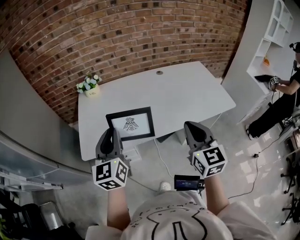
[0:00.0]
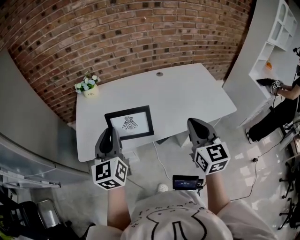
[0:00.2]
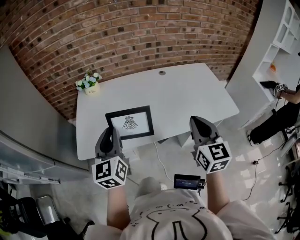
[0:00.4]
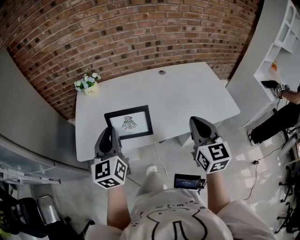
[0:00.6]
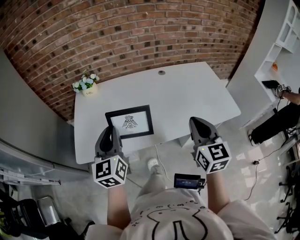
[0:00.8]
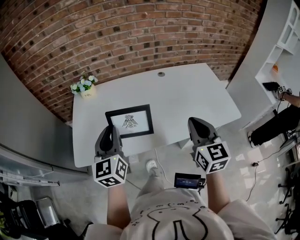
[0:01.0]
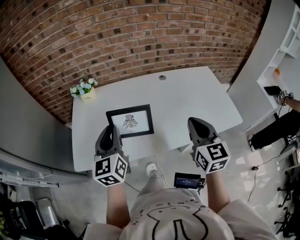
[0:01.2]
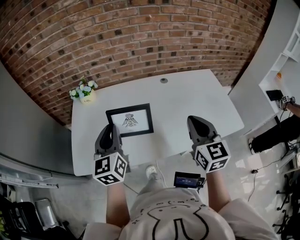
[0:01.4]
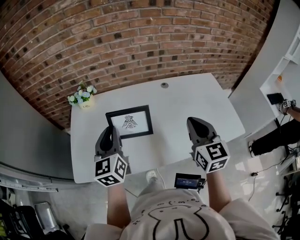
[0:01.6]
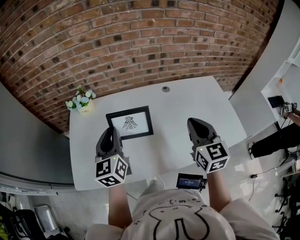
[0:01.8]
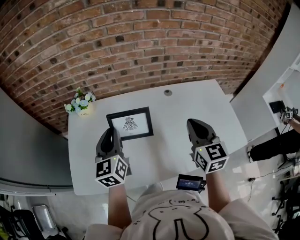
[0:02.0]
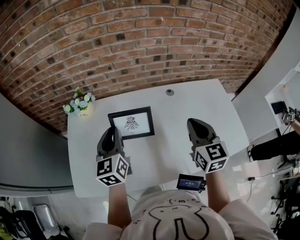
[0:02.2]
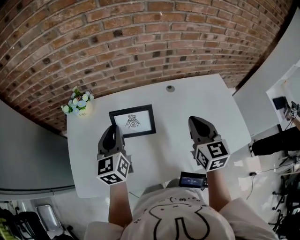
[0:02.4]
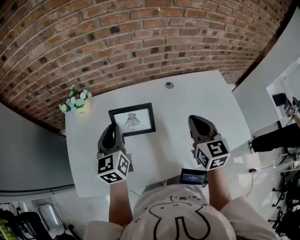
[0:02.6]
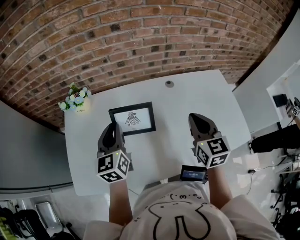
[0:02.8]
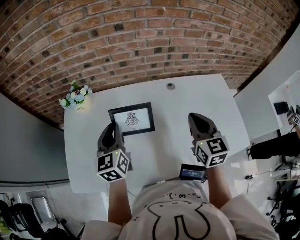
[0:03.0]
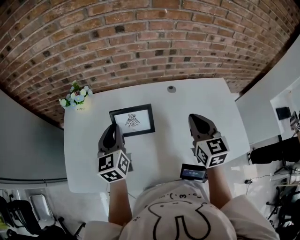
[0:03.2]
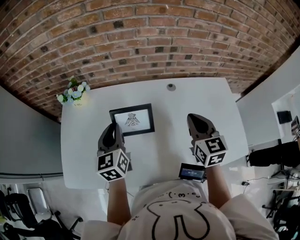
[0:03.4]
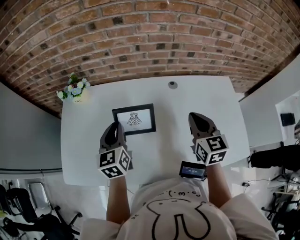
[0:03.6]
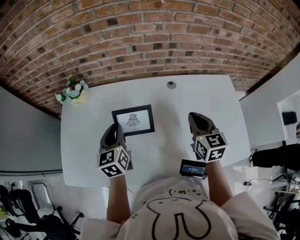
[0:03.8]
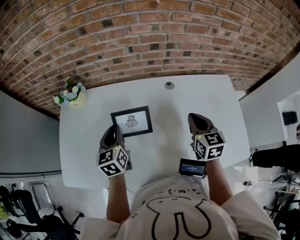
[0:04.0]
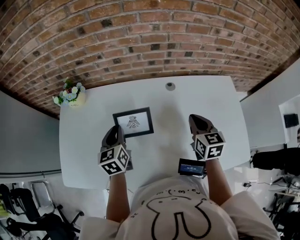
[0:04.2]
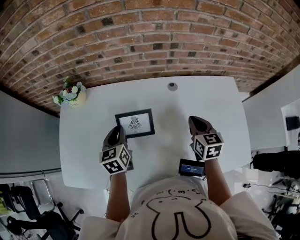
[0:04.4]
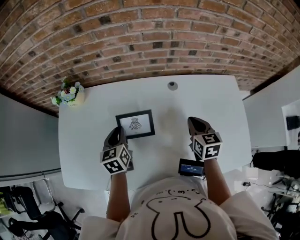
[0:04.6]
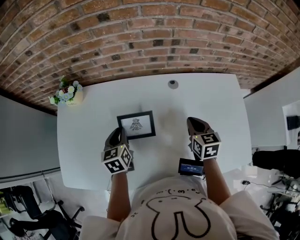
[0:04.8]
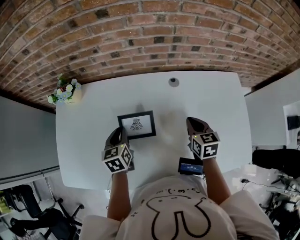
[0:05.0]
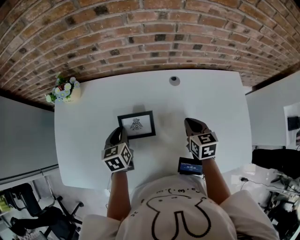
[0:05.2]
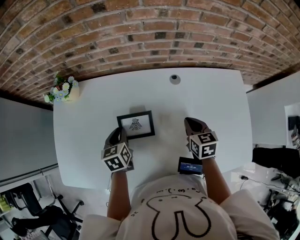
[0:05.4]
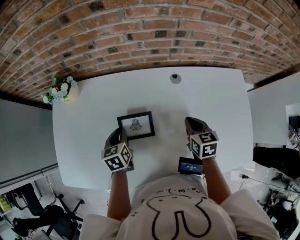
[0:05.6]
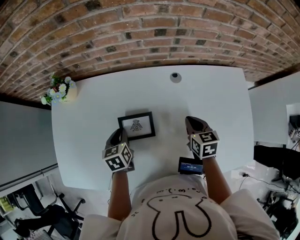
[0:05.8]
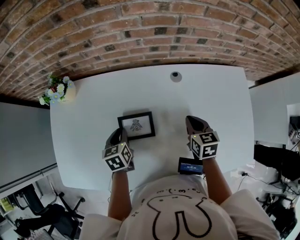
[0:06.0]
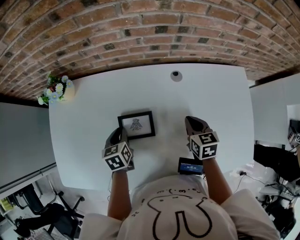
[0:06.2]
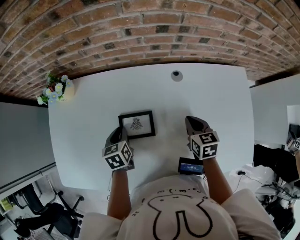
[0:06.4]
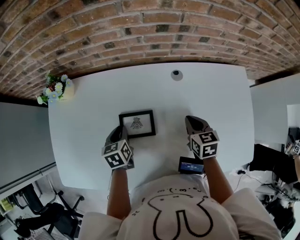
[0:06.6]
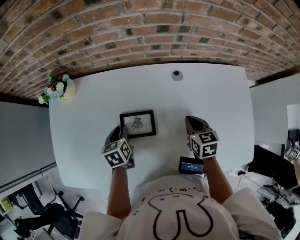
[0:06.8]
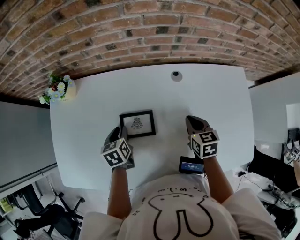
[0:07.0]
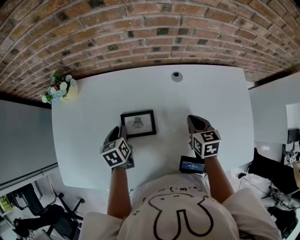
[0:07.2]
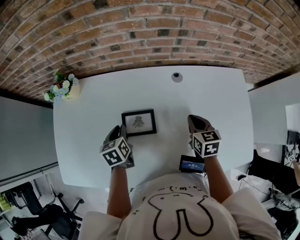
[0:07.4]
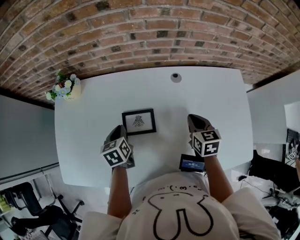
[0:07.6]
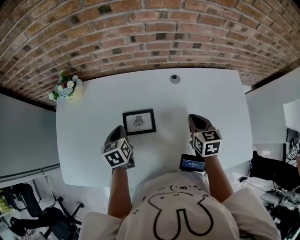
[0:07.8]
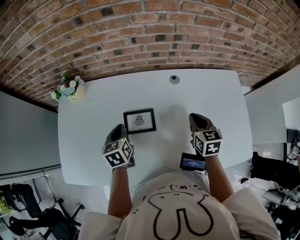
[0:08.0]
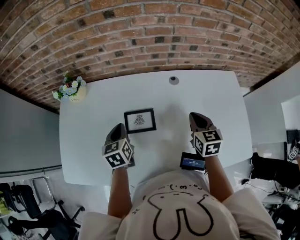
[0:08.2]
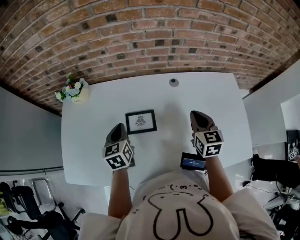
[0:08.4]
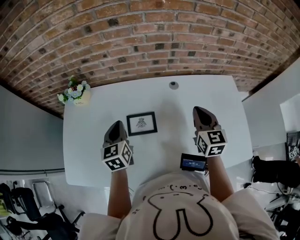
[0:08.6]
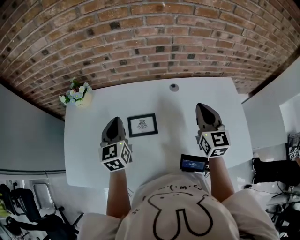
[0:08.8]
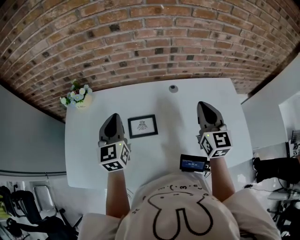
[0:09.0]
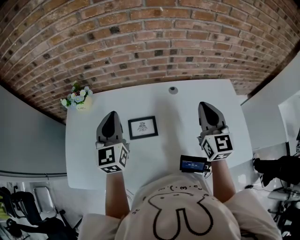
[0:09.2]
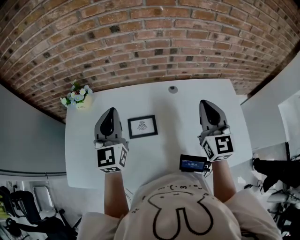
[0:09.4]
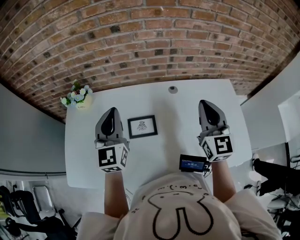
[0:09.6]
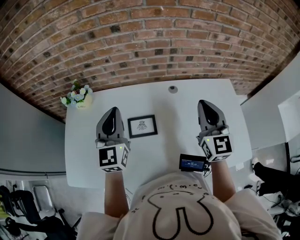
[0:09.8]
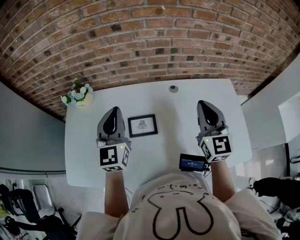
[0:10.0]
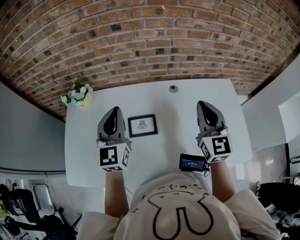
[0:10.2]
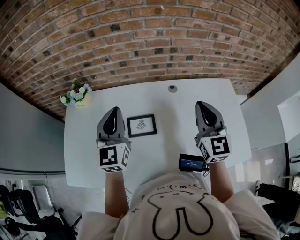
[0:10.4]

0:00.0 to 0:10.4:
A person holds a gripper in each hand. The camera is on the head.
0:00.0 to 0:01.4: The grippers both shift forward by about 15 cm.
0:01.4 to 0:03.0: Both grippers move forward, some 15 cm.
0:03.0 to 0:04.4: The left gripper is displaced downward and to the right by about 10 cm, while the right gripper is displaced downward, to the right and forward by roughly 15 cm.
0:04.4 to 0:06.0: Both grippers move downward, roughly 10 cm.
0:06.0 to 0:07.4: The grippers move only a little.
0:07.4 to 0:09.0: Both grippers travel together upward, roughly 20 cm. The left gripper tips its fingers upward by roughly 40 degrees, while the right gripper tips its fingers upward by some 30 degrees.
0:09.0 to 0:10.4: The left gripper heads upward, covering approximately 5 cm.

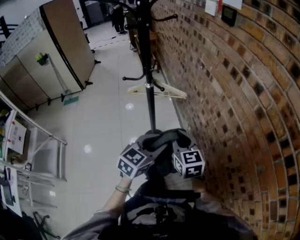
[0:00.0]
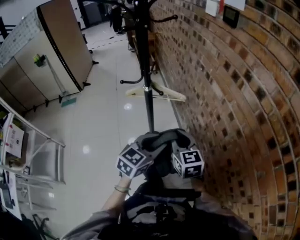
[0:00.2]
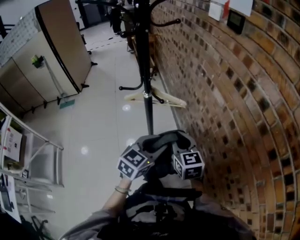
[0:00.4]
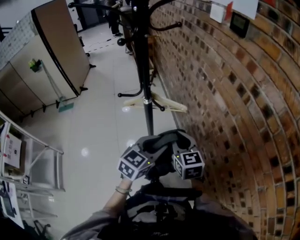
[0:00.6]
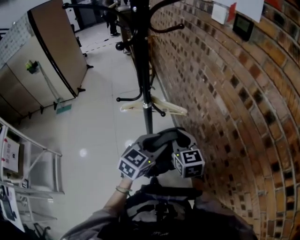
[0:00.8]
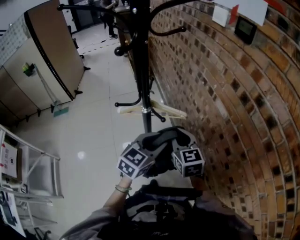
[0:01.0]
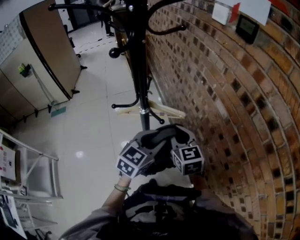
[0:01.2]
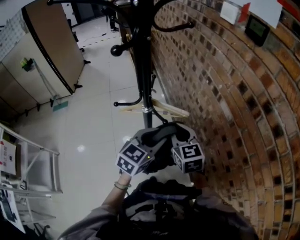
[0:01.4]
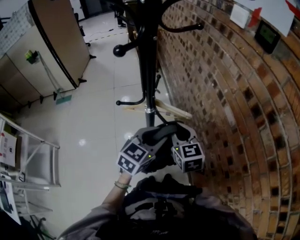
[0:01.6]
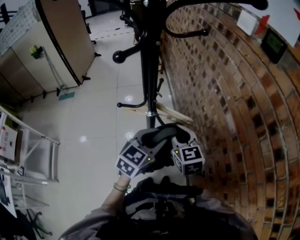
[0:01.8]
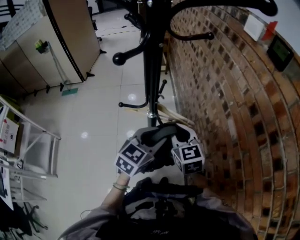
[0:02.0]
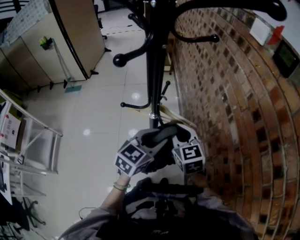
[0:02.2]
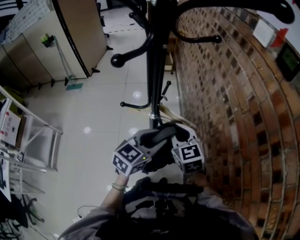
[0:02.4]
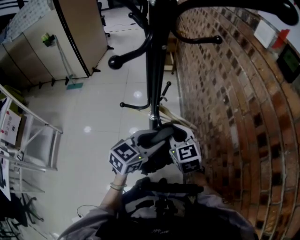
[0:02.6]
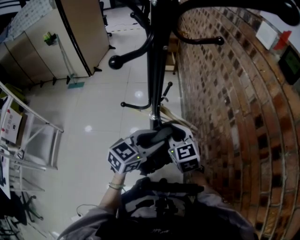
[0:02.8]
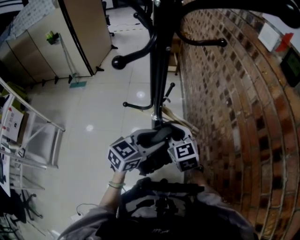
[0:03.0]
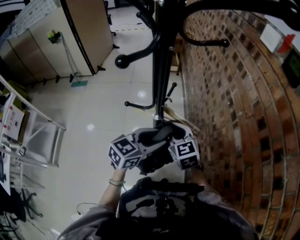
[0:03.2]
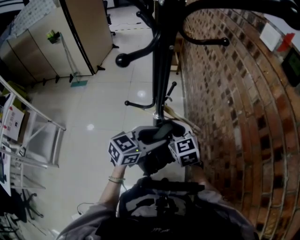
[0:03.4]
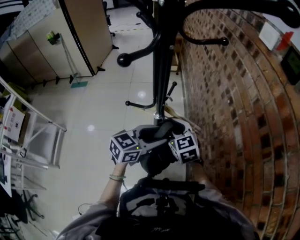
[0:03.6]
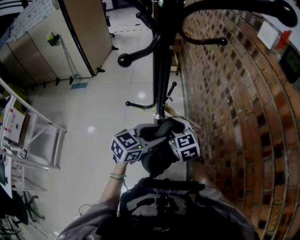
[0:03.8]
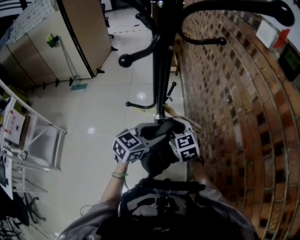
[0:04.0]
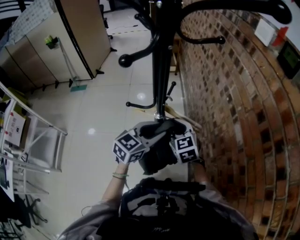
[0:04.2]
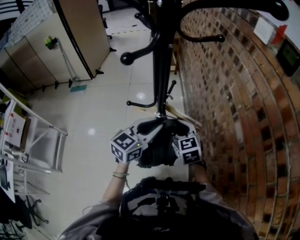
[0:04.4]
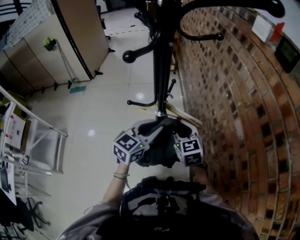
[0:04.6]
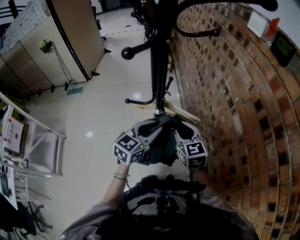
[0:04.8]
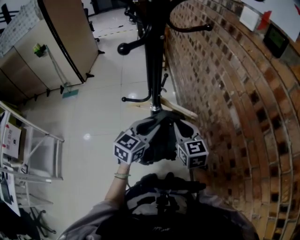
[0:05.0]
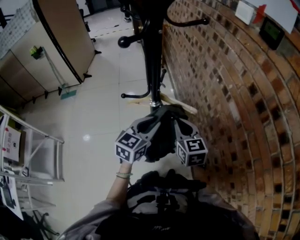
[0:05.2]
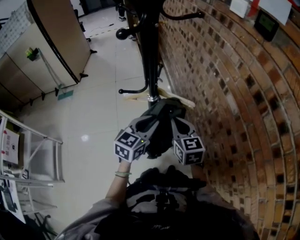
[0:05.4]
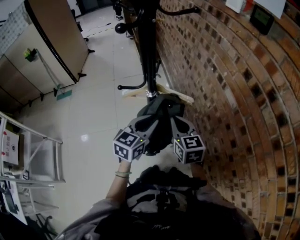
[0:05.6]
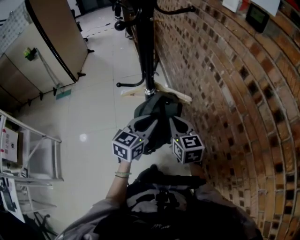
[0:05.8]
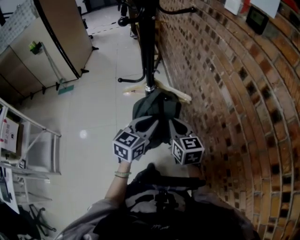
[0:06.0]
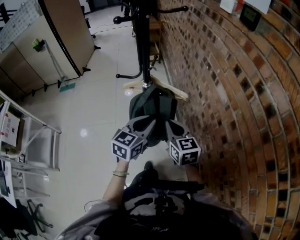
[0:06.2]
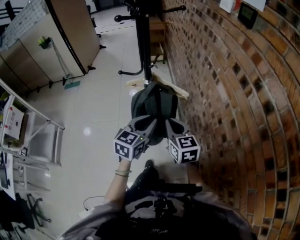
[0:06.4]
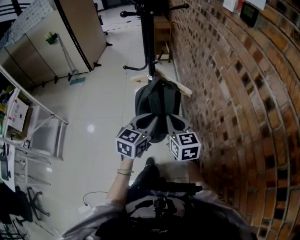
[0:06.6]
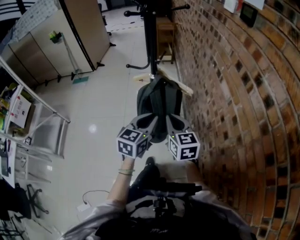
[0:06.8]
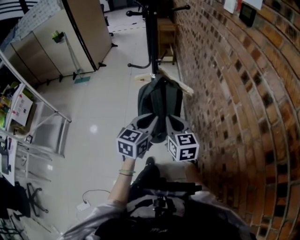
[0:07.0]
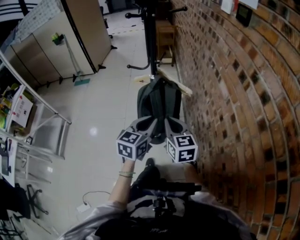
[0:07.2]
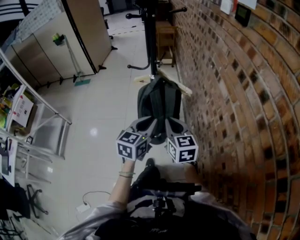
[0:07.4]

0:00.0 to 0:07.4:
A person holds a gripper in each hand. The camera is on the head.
0:00.0 to 0:01.4: Both grippers move forward, approximately 20 cm.
0:01.4 to 0:03.0: The right gripper travels forward and to the left by approximately 10 cm, and changes its angle by approximately 20 degrees.
0:03.0 to 0:04.4: There are only small adjustments of the grippers.
0:04.4 to 0:06.0: The right gripper moves backward and to the right, roughly 15 cm. The left gripper shifts about 10 cm backward.
0:06.0 to 0:07.4: The two grippers go some 10 cm backward.

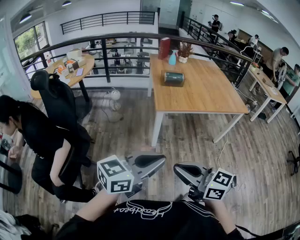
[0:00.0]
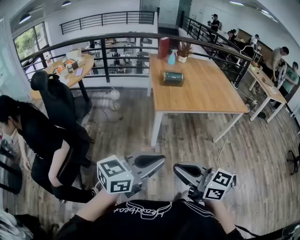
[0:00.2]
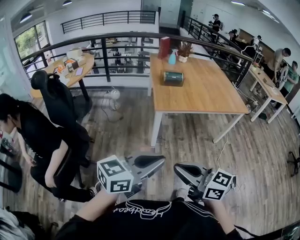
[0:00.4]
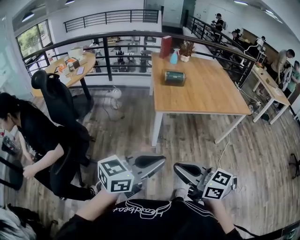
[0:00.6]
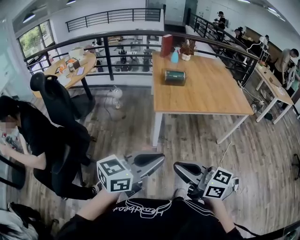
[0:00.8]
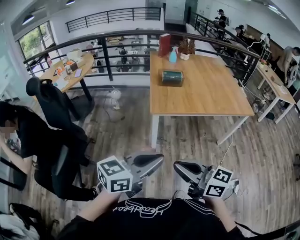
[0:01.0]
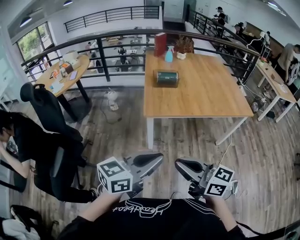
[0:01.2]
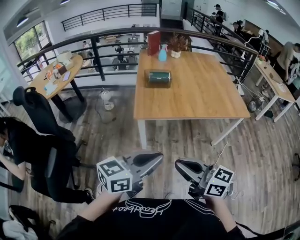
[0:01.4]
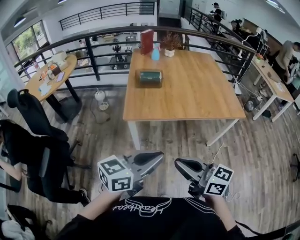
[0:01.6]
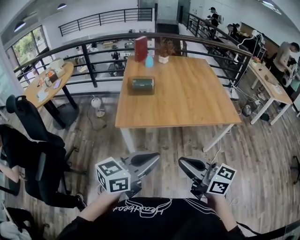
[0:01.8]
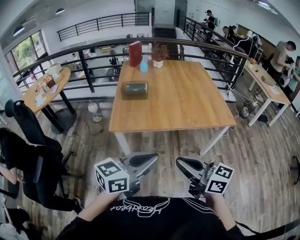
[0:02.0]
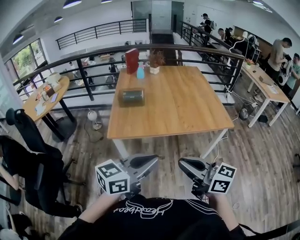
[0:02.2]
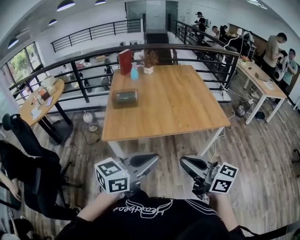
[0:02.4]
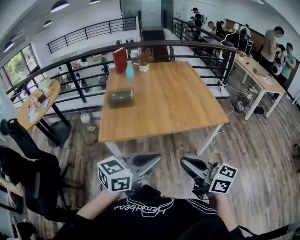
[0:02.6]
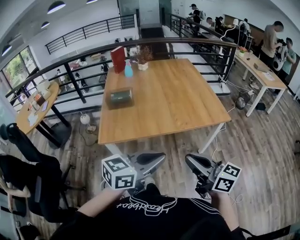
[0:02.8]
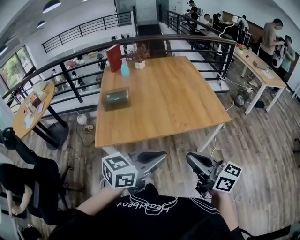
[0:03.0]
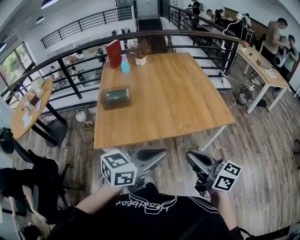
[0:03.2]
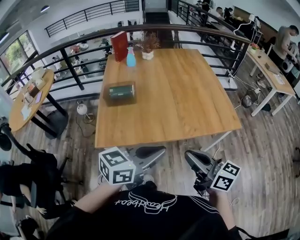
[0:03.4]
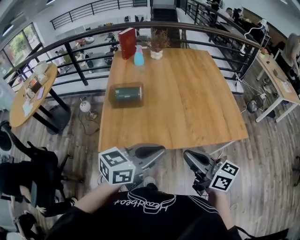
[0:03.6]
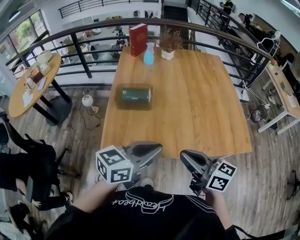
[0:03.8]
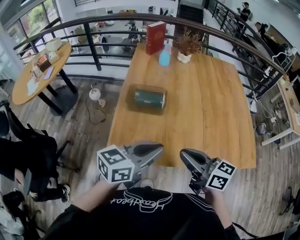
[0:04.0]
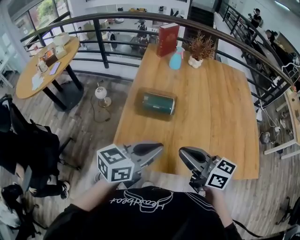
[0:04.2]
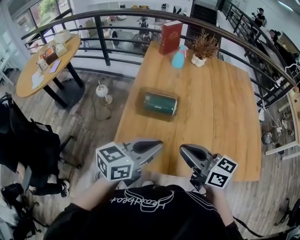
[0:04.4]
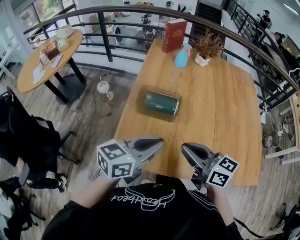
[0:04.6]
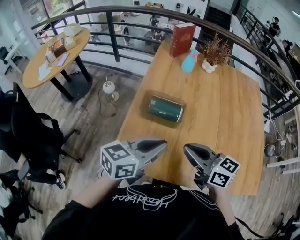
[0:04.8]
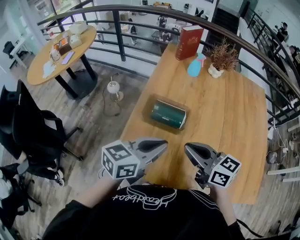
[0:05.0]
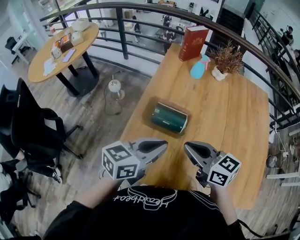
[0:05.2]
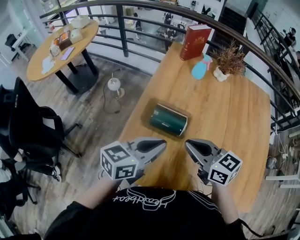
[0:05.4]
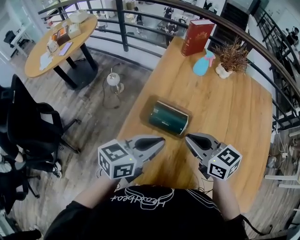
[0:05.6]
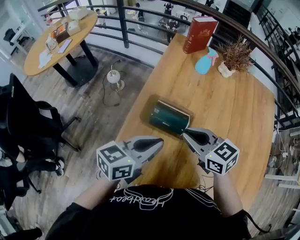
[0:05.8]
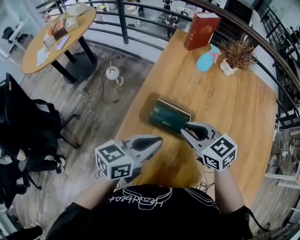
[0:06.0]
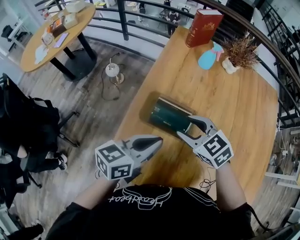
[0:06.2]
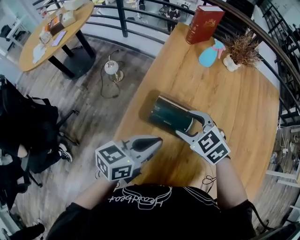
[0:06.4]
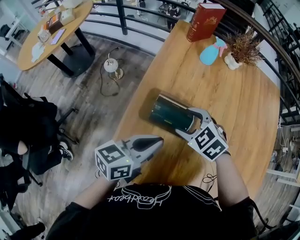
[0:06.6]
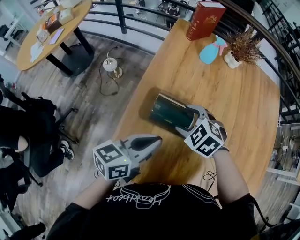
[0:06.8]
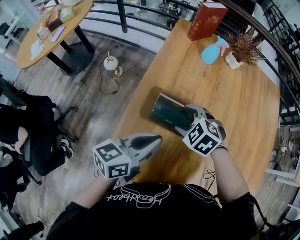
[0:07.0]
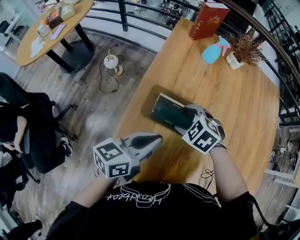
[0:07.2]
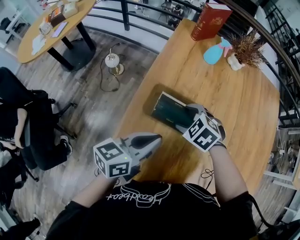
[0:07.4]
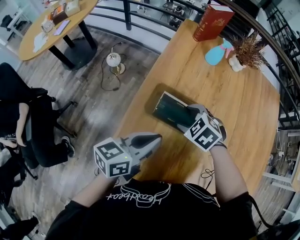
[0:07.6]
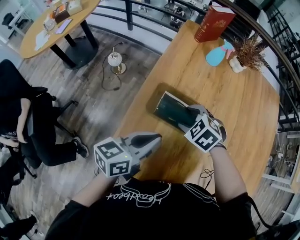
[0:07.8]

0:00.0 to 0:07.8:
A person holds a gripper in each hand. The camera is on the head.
0:00.0 to 0:01.6: Both grippers move to the right and forward, some 35 cm.
0:01.6 to 0:03.2: The right gripper heads to the right and forward, covering roughly 30 cm. Meanwhile the left gripper shifts roughly 25 cm forward and to the right.
0:03.2 to 0:04.6: Both grippers are carried forward and to the left, some 40 cm. The left gripper swivels some 30 degrees, while the right gripper swivels some 30 degrees.
0:04.6 to 0:06.2: The left gripper heads forward and downward, covering about 15 cm. Meanwhile the right gripper goes some 25 cm forward and downward, tips its fingers downward by roughly 30 degrees, and opens its fingers.
0:06.2 to 0:07.8: The right gripper goes approximately 5 cm downward, and turns by approximately 30 degrees.
